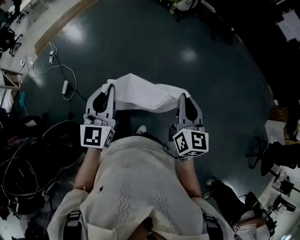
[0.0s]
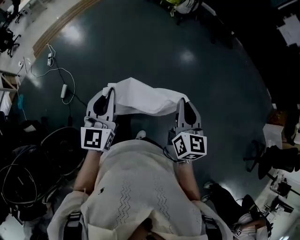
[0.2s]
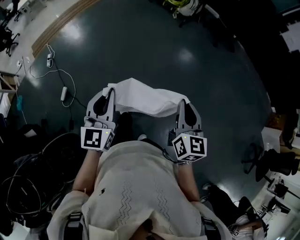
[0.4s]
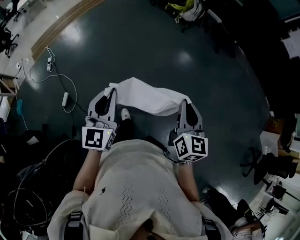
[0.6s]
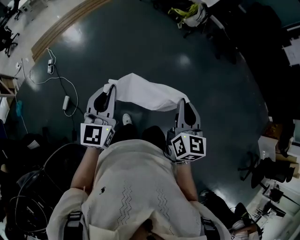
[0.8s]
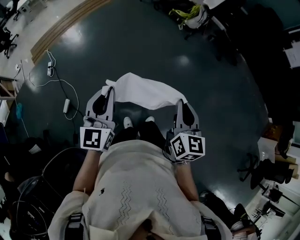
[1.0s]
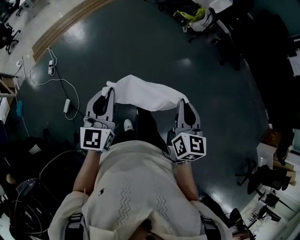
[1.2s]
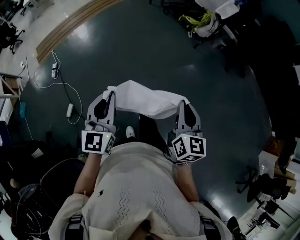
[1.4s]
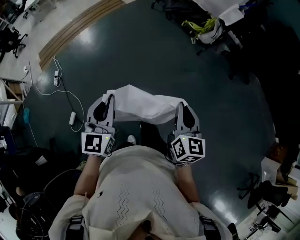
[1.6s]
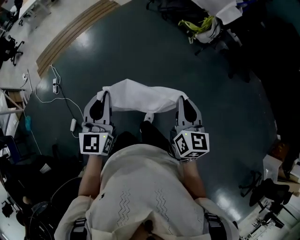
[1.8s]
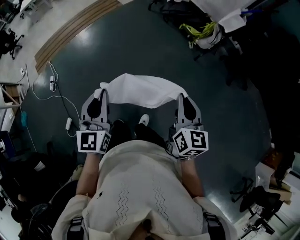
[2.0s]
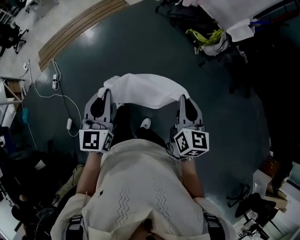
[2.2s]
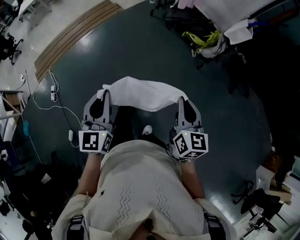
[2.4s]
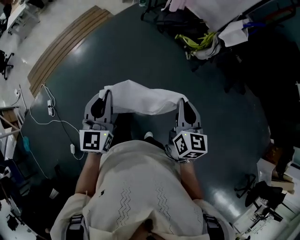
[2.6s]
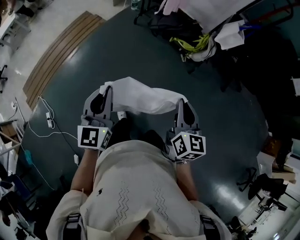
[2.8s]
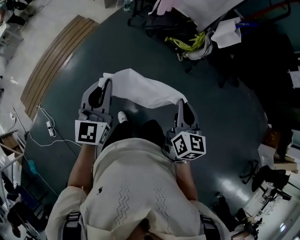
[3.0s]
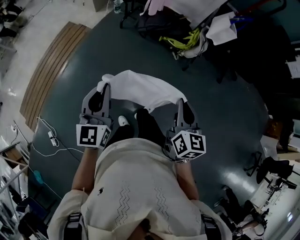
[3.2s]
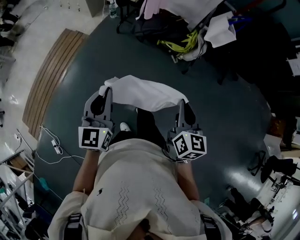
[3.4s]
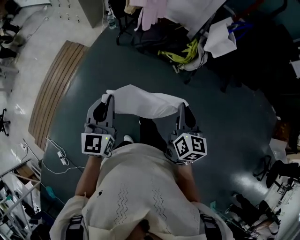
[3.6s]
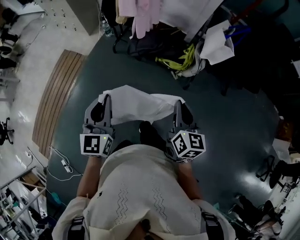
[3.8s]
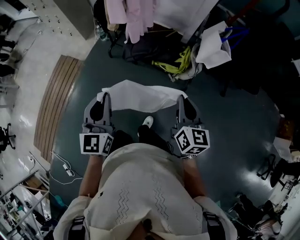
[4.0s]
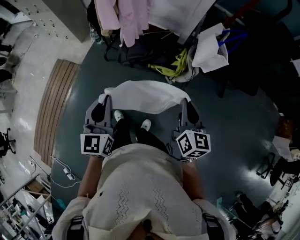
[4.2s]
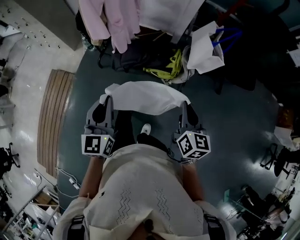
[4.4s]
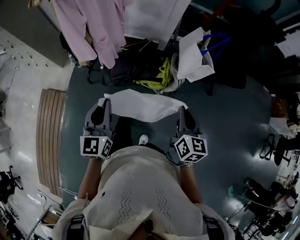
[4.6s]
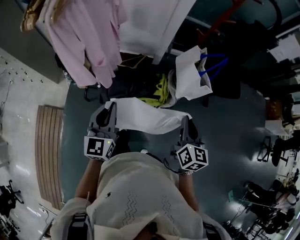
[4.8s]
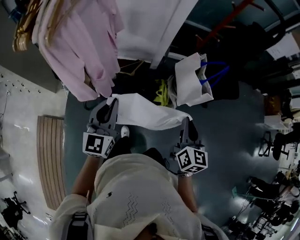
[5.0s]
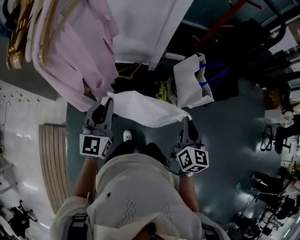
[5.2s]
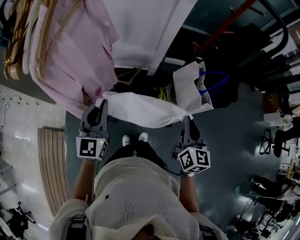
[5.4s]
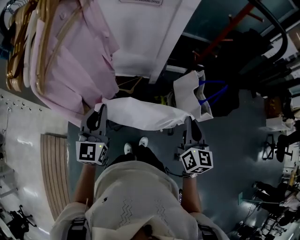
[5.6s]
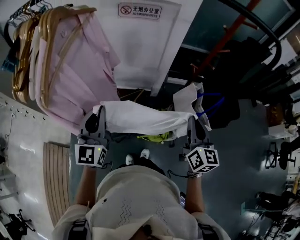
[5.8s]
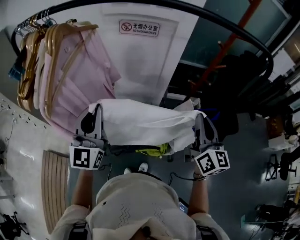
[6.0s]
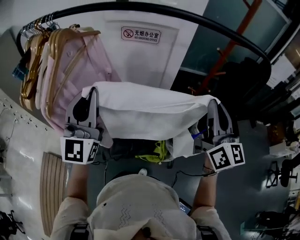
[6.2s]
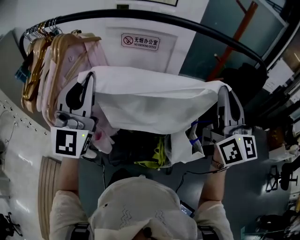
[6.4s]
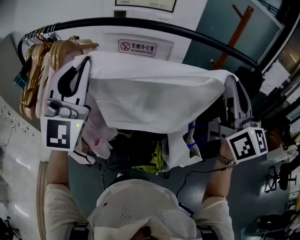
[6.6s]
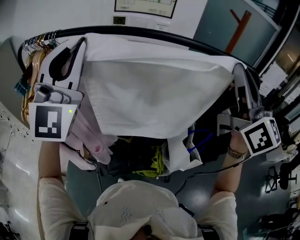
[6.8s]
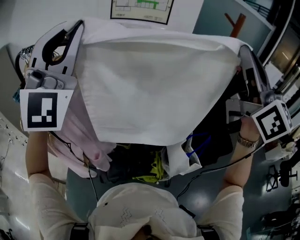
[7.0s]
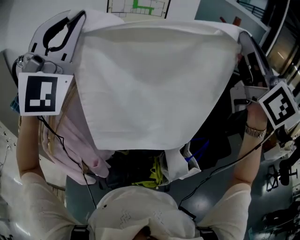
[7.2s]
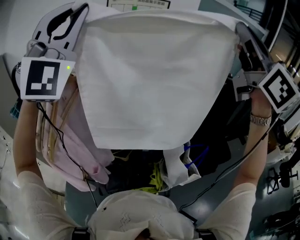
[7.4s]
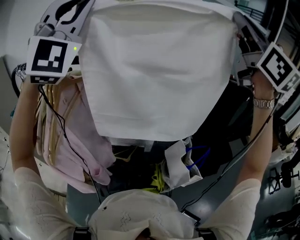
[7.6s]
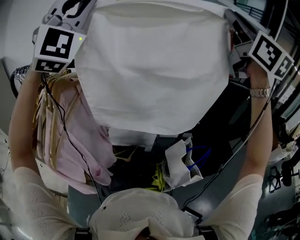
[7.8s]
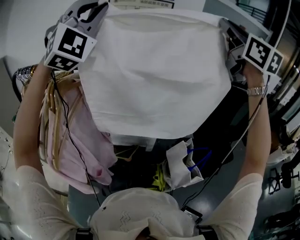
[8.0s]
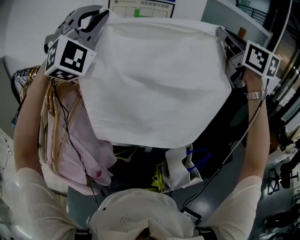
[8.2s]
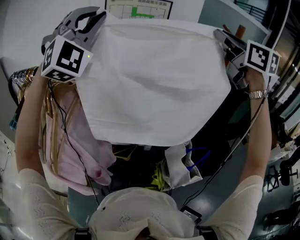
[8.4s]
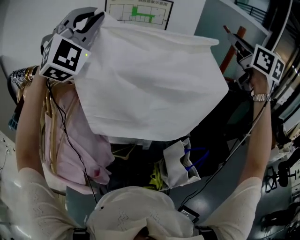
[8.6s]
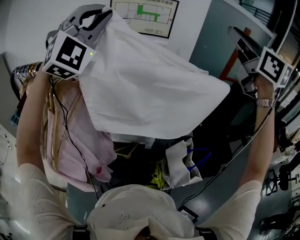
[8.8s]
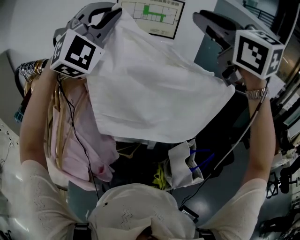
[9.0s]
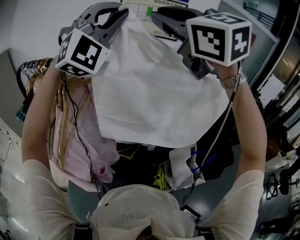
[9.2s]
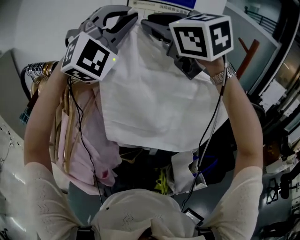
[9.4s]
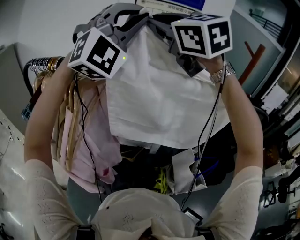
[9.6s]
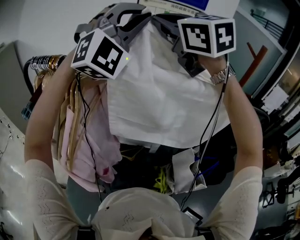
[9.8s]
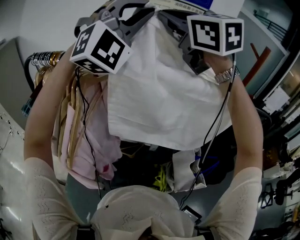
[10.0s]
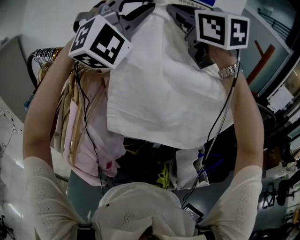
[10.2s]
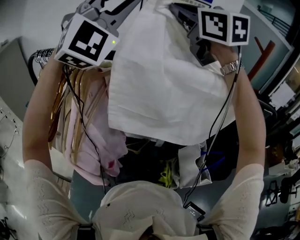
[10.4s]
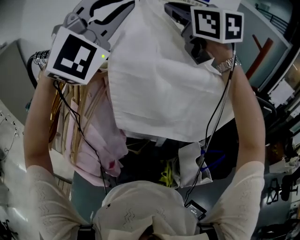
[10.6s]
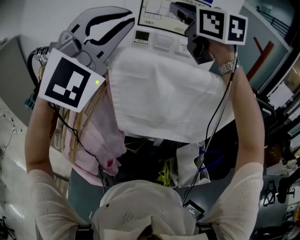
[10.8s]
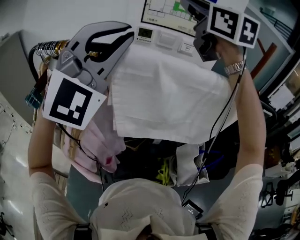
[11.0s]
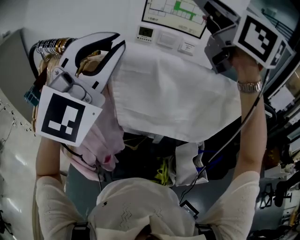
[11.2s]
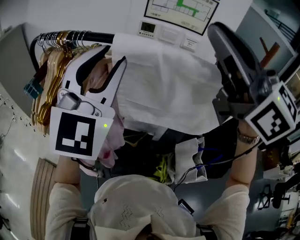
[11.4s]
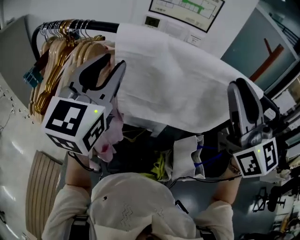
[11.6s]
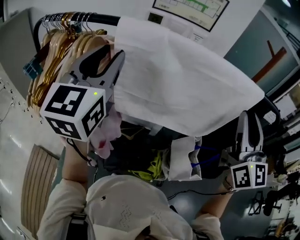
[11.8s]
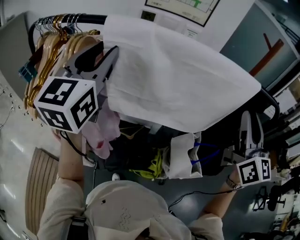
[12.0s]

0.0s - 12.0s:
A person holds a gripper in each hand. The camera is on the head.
0.0s - 1.6s: Both grippers are carried forward, approximately 60 cm.
1.6s - 3.0s: The two grippers travel together, forward, approximately 50 cm.
3.0s - 4.4s: The pair of grippers is taken forward, some 50 cm.
4.4s - 6.0s: The two grippers go some 50 cm forward and upward. The left gripper swivels roughly 30 degrees, while the right gripper turns by about 30 degrees.
6.0s - 7.6s: Both grippers move upward, approximately 40 cm. The left gripper rolls clockwise, seen from behind, by some 60 degrees. The right gripper swivels approximately 40 degrees.
7.6s - 9.0s: The left gripper moves forward, approximately 10 cm; the right gripper goes some 15 cm to the left and forward, and rotates some 30 degrees.
9.0s - 10.4s: The right gripper is displaced to the left and forward by about 15 cm; the left gripper shifts by roughly 5 cm.
10.4s - 12.0s: The left gripper goes some 20 cm downward, twists some 60 degrees counterclockwise, seen from behind, and opens. The right gripper is displaced to the right, backward and downward by about 40 cm, and changes its angle by about 30 degrees.

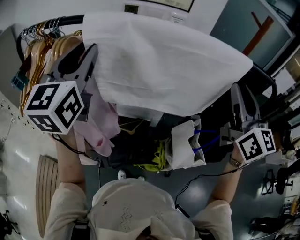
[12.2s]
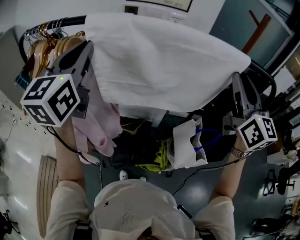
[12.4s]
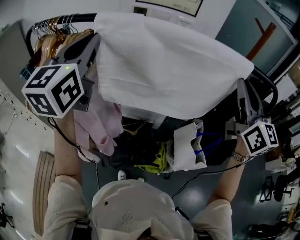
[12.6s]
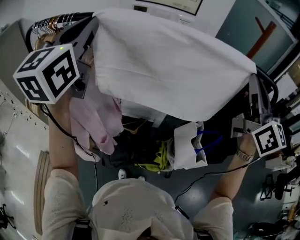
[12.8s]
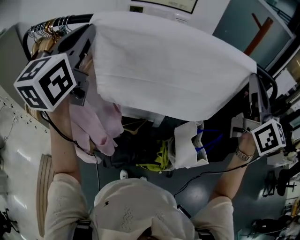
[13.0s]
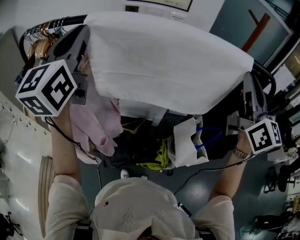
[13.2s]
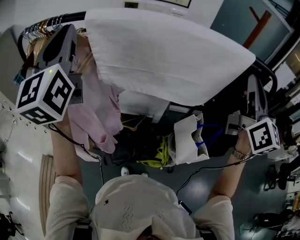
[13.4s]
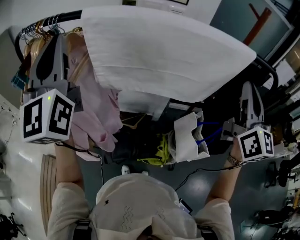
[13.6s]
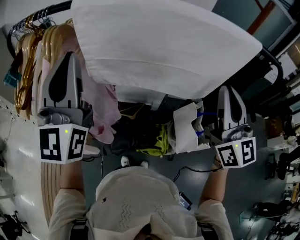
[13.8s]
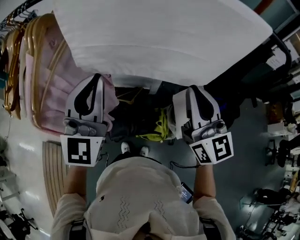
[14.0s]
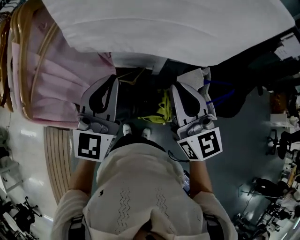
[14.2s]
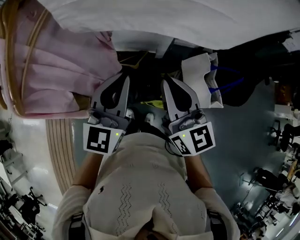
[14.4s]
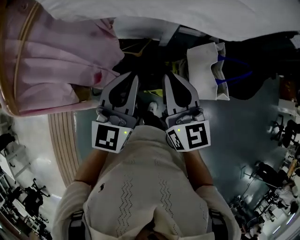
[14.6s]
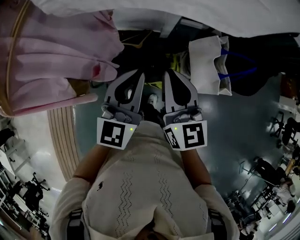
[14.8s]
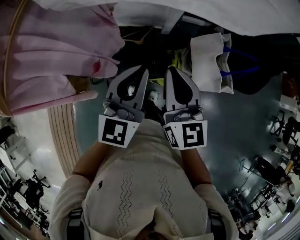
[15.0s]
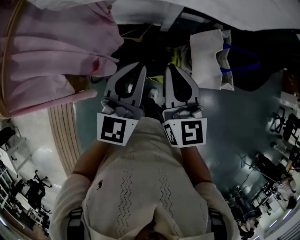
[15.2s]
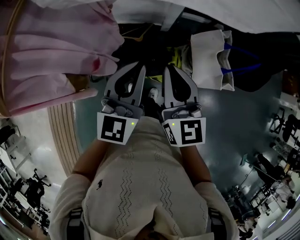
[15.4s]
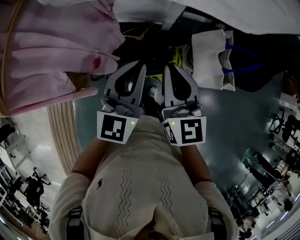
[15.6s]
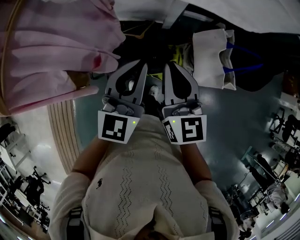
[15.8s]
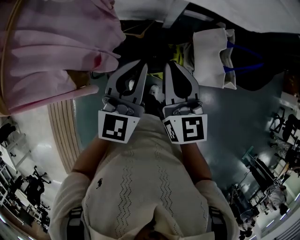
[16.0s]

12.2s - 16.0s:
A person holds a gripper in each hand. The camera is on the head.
12.2s - 13.4s: The right gripper ends up roughly 5 cm from where it was, while the left gripper moves upward, some 5 cm, and closes.
13.4s - 14.8s: The left gripper shifts about 40 cm downward and to the right, and rotates roughly 40 degrees, while the right gripper travels downward and to the left by roughly 40 cm, and rotates approximately 30 degrees.
14.8s - 16.0s: The grippers make only small movements.

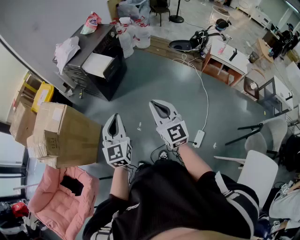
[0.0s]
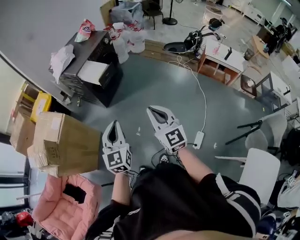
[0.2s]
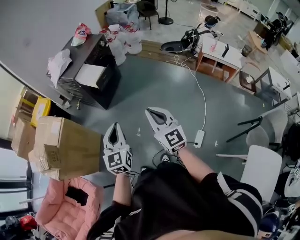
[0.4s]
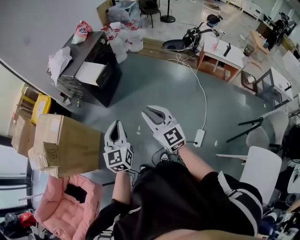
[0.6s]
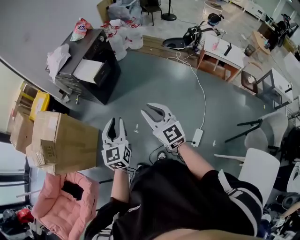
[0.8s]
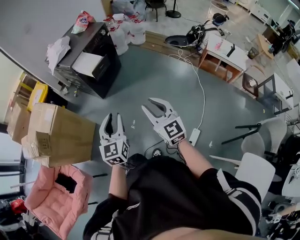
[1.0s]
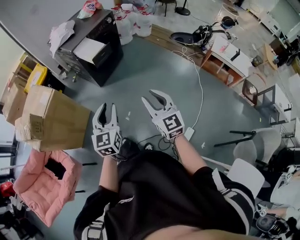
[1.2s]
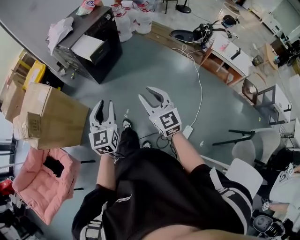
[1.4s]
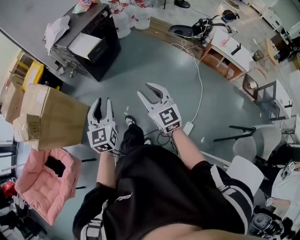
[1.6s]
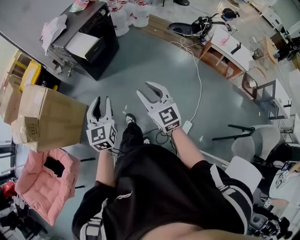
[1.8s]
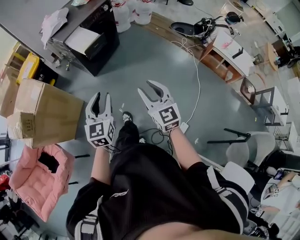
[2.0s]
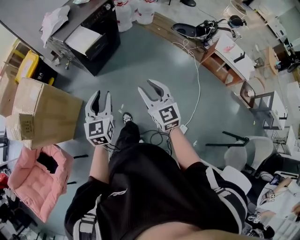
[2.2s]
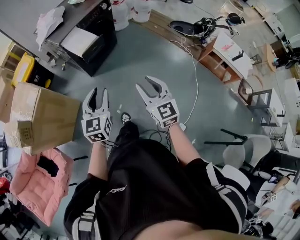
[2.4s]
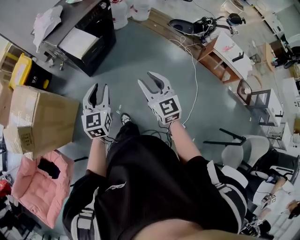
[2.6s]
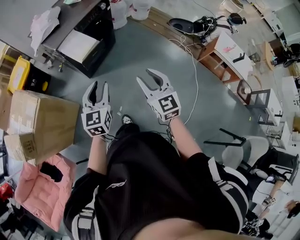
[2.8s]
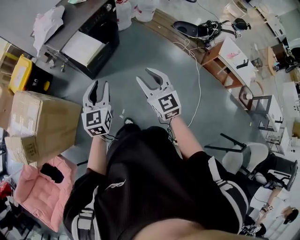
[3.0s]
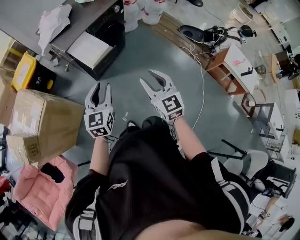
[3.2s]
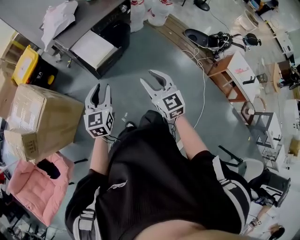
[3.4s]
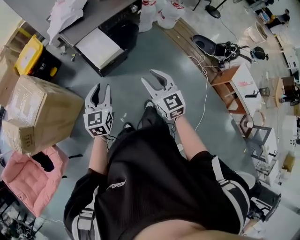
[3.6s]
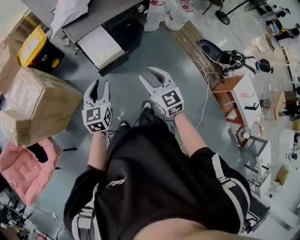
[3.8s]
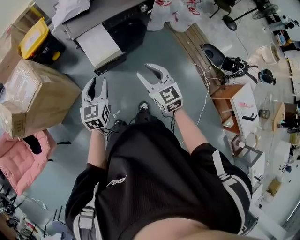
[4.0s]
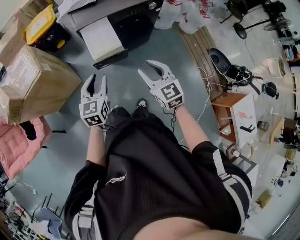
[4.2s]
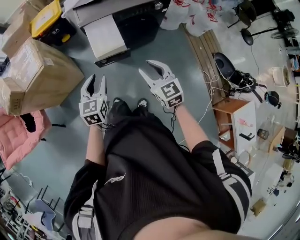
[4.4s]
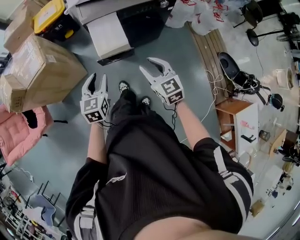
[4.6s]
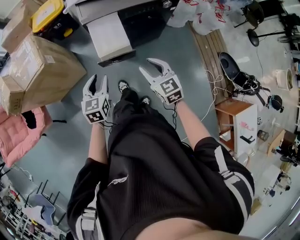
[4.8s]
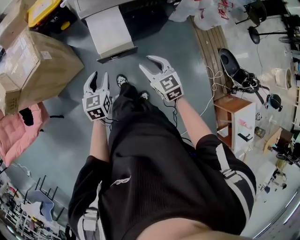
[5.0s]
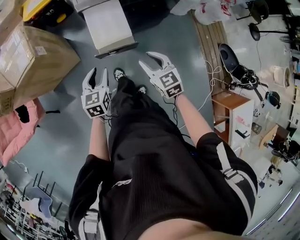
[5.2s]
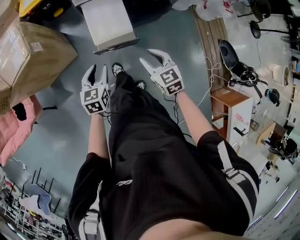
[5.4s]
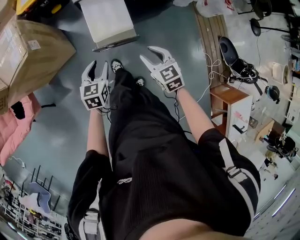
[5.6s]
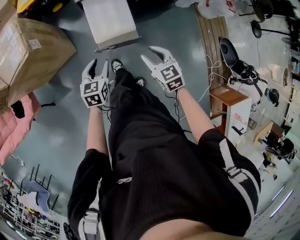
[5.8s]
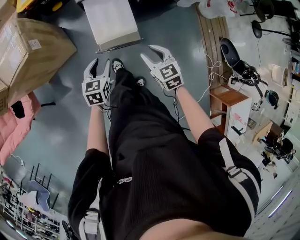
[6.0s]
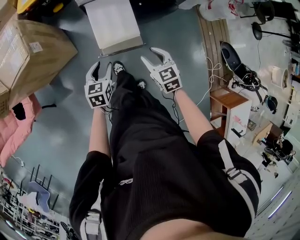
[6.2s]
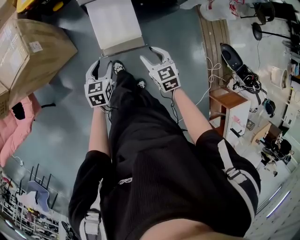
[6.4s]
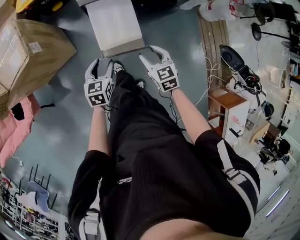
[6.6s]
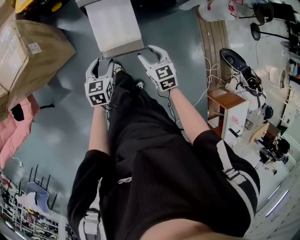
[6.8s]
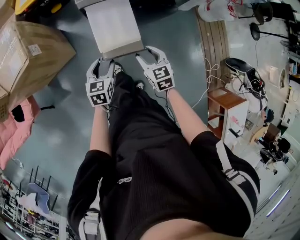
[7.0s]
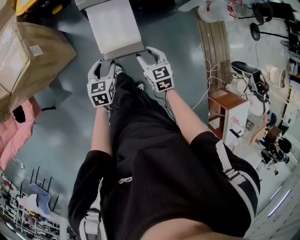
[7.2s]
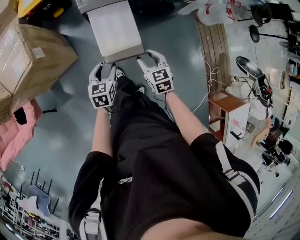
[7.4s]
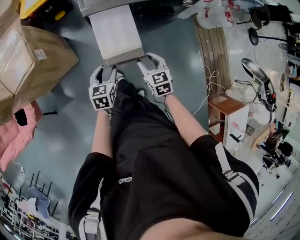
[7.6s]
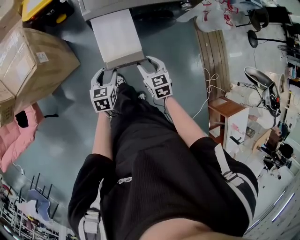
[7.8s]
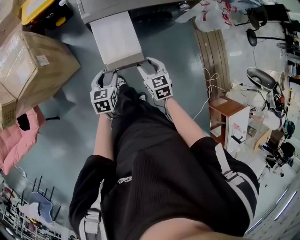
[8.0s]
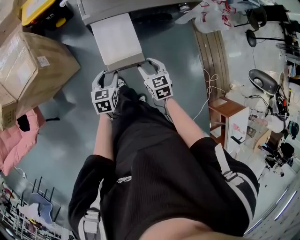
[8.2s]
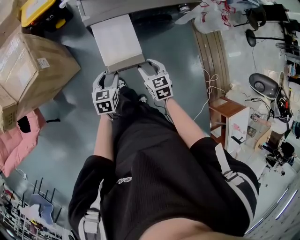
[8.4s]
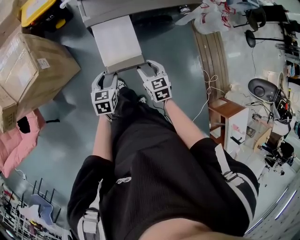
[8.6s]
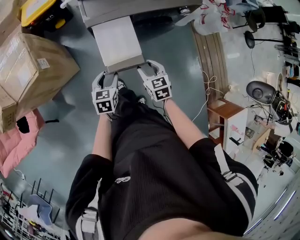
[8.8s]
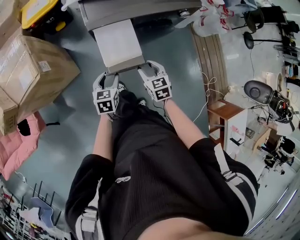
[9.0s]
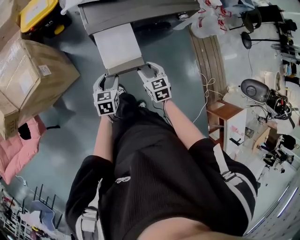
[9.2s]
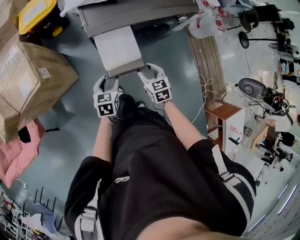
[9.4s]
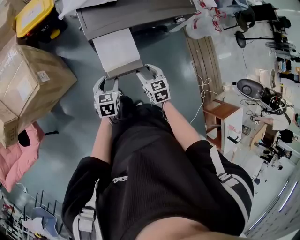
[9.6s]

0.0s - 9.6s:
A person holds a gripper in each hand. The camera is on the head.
0.0s - 1.6s: Both grippers travel together to the right and downward, approximately 10 cm. The left gripper opens its fingers. Meanwhile the right gripper opens.
1.6s - 3.2s: The grippers both shift forward by about 30 cm.
3.2s - 4.8s: The right gripper ends up some 25 cm from where it was, and rotates some 40 degrees. Meanwhile the left gripper moves about 15 cm, and rotates roughly 40 degrees.
4.8s - 6.4s: The right gripper heads downward and forward, covering about 15 cm. The left gripper moves downward, some 15 cm.
6.4s - 8.0s: The grippers make only small movements.
8.0s - 9.6s: The left gripper moves forward, approximately 5 cm.
